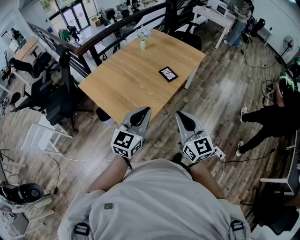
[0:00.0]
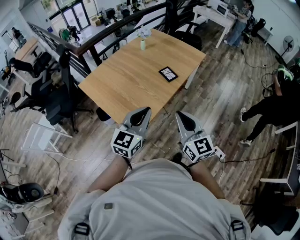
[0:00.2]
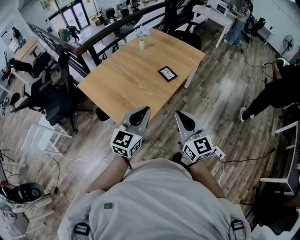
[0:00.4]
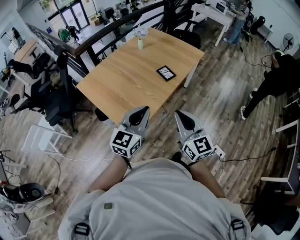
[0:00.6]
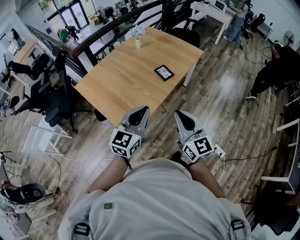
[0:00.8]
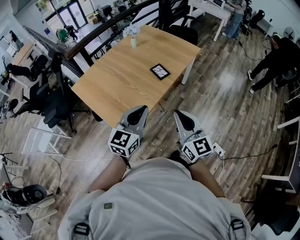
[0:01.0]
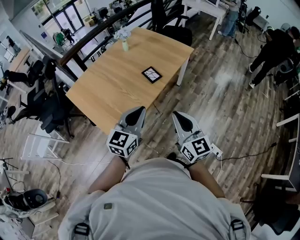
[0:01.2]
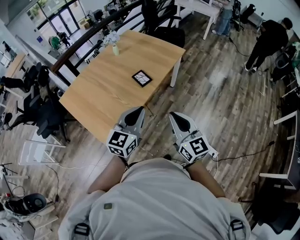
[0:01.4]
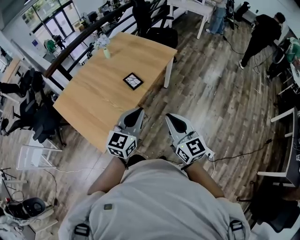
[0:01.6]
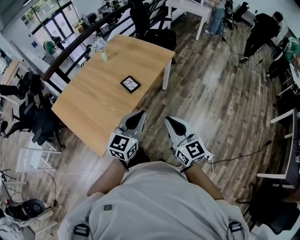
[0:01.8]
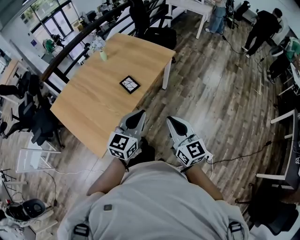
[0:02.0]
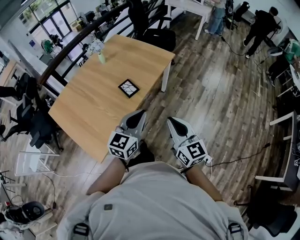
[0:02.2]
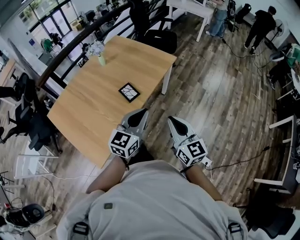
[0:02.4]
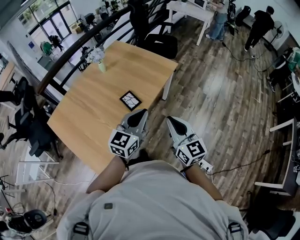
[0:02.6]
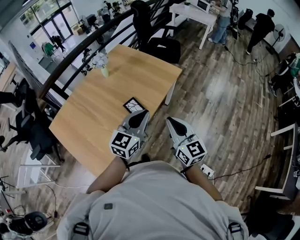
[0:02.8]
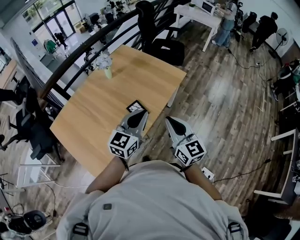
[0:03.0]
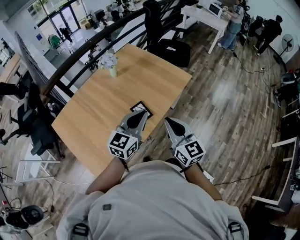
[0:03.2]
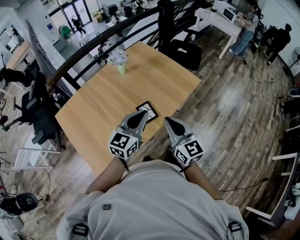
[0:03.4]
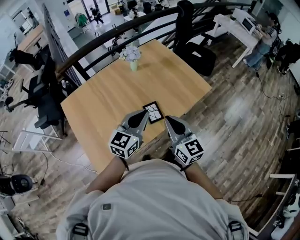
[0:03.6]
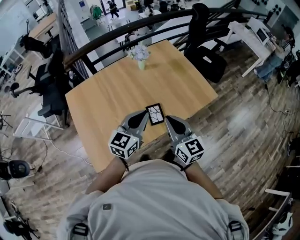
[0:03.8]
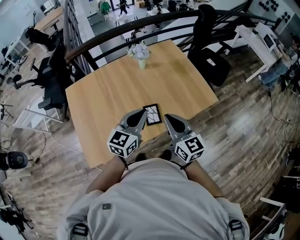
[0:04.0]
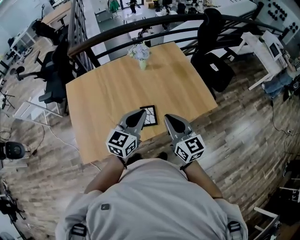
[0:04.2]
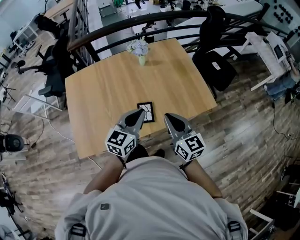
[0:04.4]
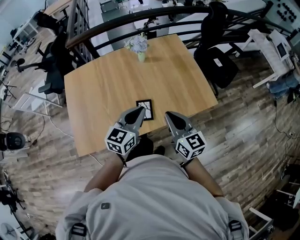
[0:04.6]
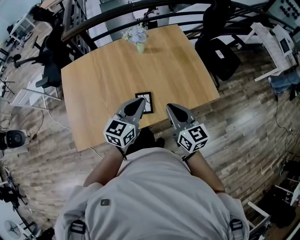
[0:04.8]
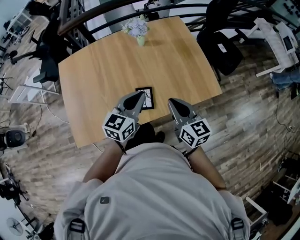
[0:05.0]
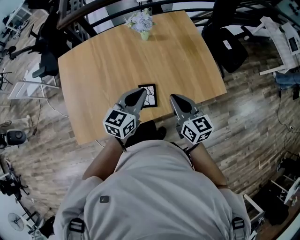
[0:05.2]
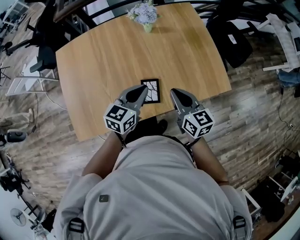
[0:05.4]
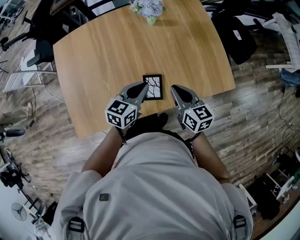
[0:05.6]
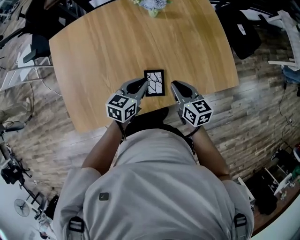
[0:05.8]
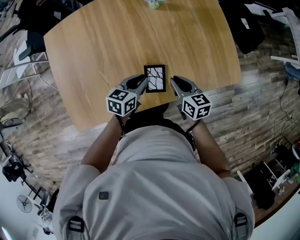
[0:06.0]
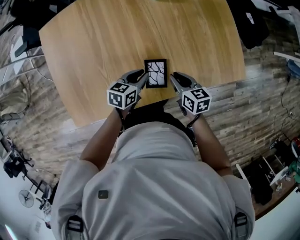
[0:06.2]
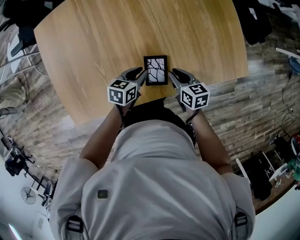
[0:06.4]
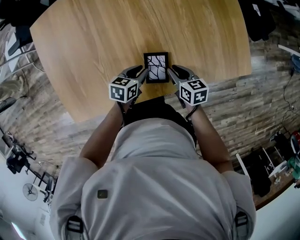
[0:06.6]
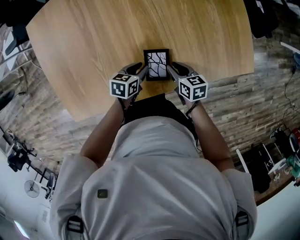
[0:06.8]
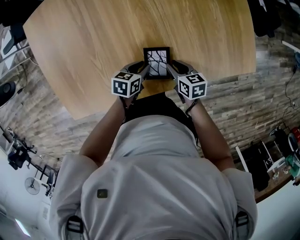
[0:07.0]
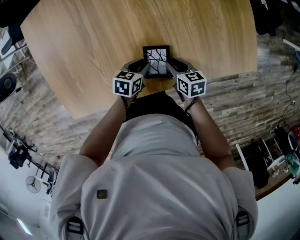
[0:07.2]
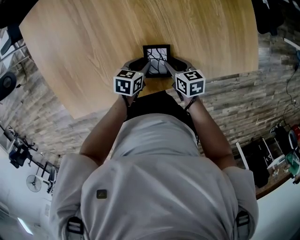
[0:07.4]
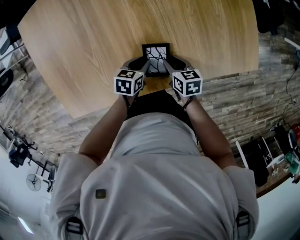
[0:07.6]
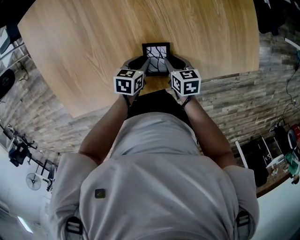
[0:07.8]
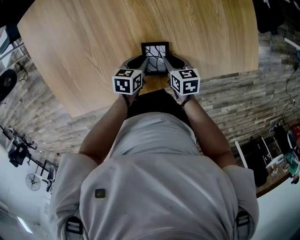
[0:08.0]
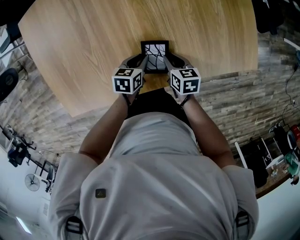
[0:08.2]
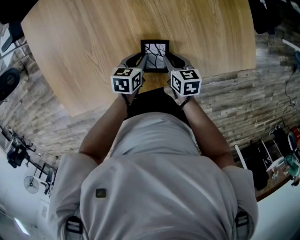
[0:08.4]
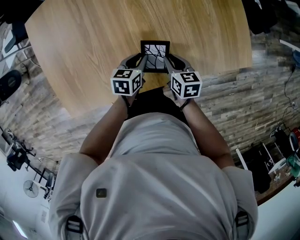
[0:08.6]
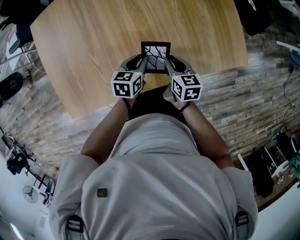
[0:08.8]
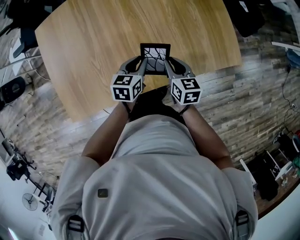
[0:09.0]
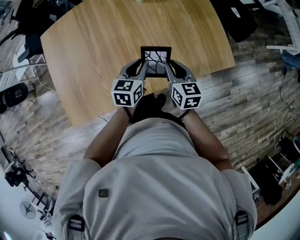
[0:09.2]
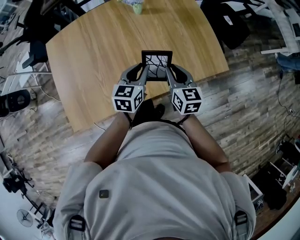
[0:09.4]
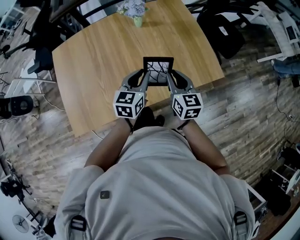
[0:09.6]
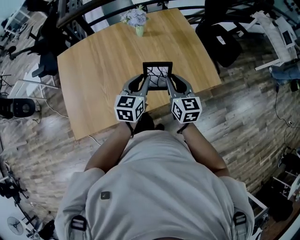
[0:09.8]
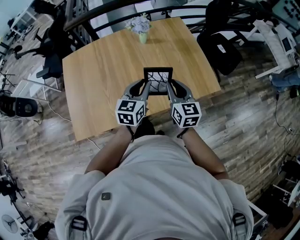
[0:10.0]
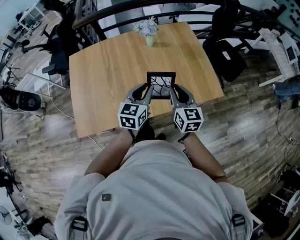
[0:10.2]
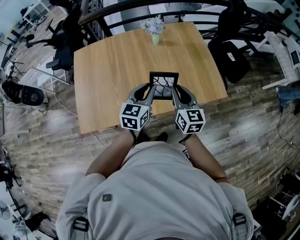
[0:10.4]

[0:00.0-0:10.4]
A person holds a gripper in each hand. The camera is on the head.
0:00.0 to 0:01.4: The two grippers go roughly 20 cm to the right and forward.
0:01.4 to 0:03.0: The grippers both shift forward by about 30 cm.
0:03.0 to 0:04.4: The left gripper moves roughly 15 cm, and swivels about 40 degrees; the right gripper moves roughly 20 cm, and changes its angle by approximately 40 degrees.
0:04.4 to 0:06.0: Both grippers travel together downward and forward, some 30 cm. The right gripper changes its angle by about 30 degrees; the left gripper swivels roughly 30 degrees.
0:06.0 to 0:07.4: Both grippers travel together downward, some 15 cm. The left gripper swivels approximately 20 degrees.
0:07.4 to 0:09.0: The two grippers go approximately 15 cm upward. The left gripper changes its angle by some 20 degrees. The right gripper rotates roughly 20 degrees.
0:09.0 to 0:10.4: Both grippers travel together upward, roughly 20 cm. The left gripper swivels roughly 30 degrees. The right gripper swivels roughly 30 degrees.

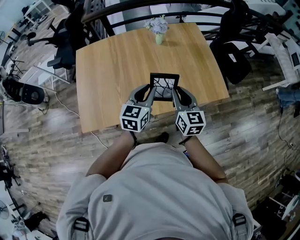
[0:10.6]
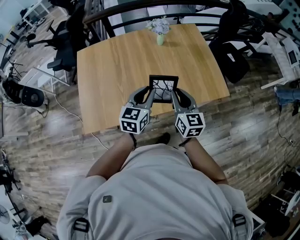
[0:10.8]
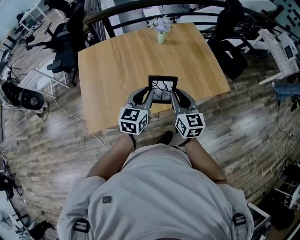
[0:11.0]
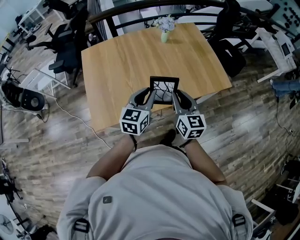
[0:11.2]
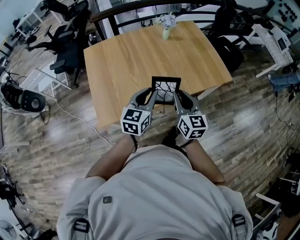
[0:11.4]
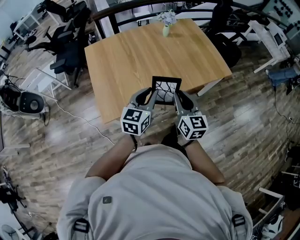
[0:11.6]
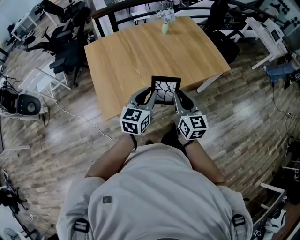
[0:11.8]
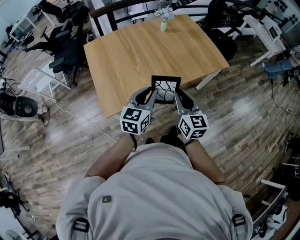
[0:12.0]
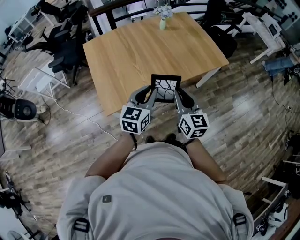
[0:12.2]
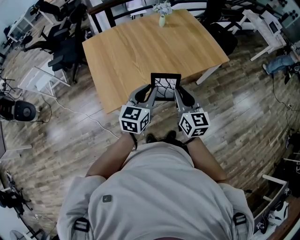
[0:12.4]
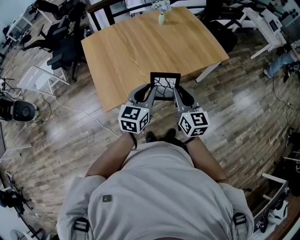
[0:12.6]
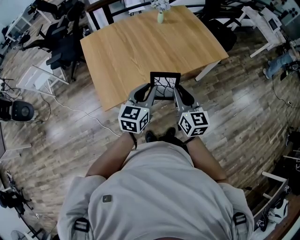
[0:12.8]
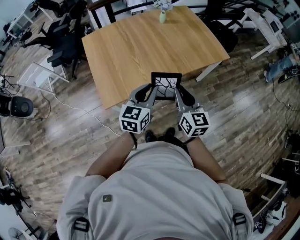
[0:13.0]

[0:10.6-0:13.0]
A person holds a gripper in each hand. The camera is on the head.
0:10.6 to 0:11.8: The two grippers go about 30 cm backward and to the left.
0:11.8 to 0:13.0: The grippers move only a little.

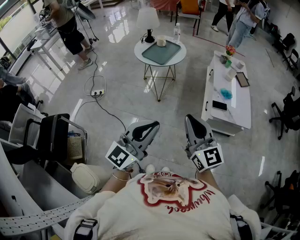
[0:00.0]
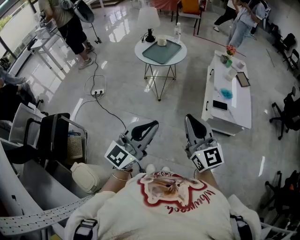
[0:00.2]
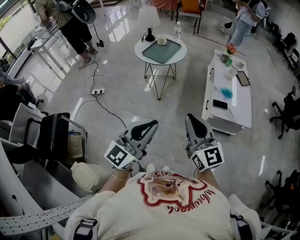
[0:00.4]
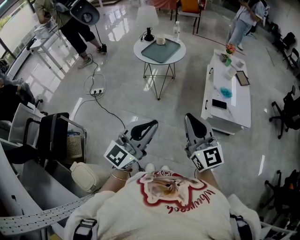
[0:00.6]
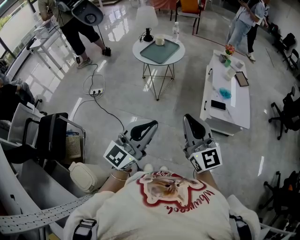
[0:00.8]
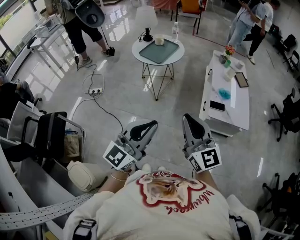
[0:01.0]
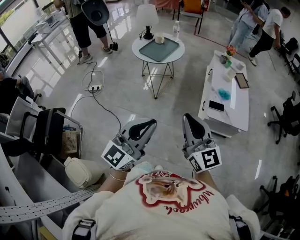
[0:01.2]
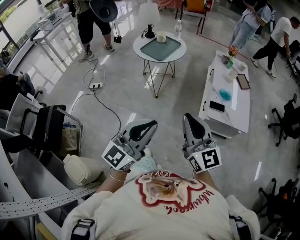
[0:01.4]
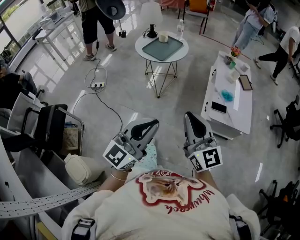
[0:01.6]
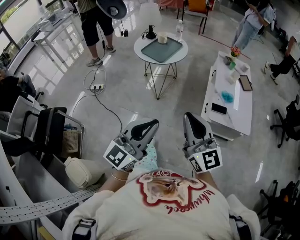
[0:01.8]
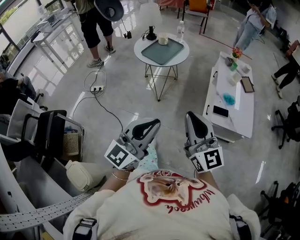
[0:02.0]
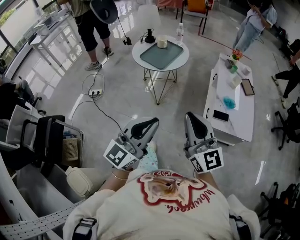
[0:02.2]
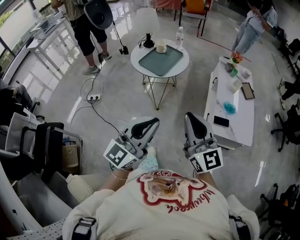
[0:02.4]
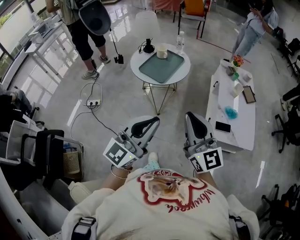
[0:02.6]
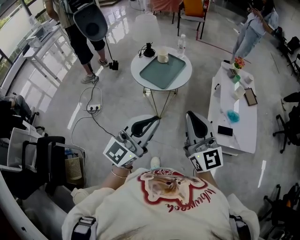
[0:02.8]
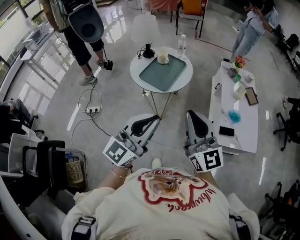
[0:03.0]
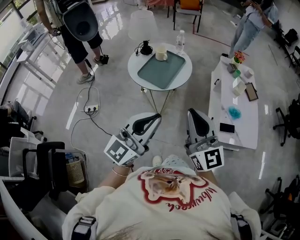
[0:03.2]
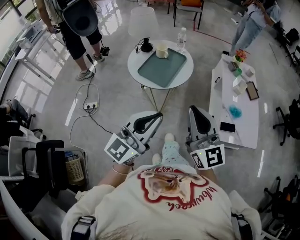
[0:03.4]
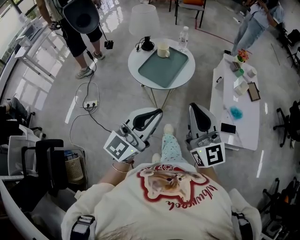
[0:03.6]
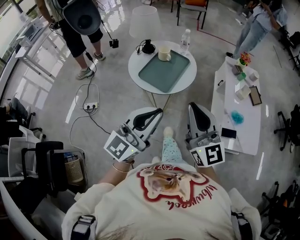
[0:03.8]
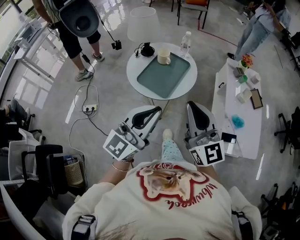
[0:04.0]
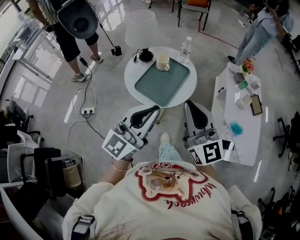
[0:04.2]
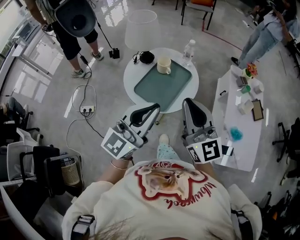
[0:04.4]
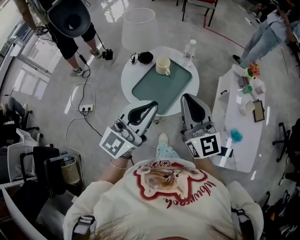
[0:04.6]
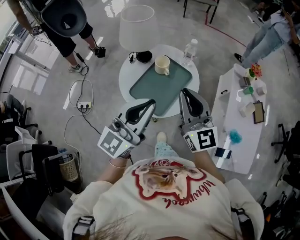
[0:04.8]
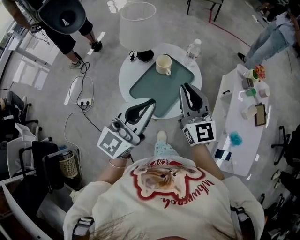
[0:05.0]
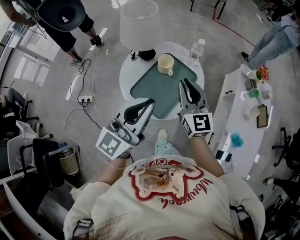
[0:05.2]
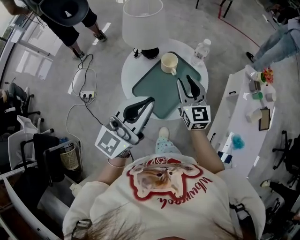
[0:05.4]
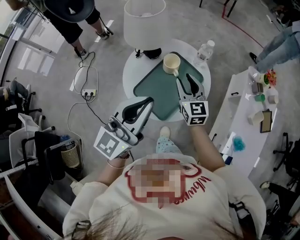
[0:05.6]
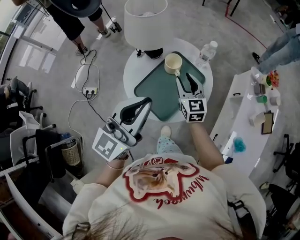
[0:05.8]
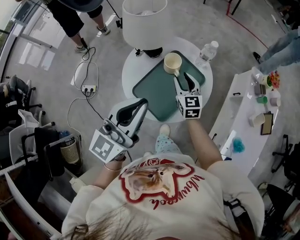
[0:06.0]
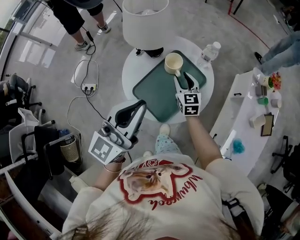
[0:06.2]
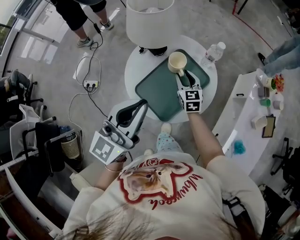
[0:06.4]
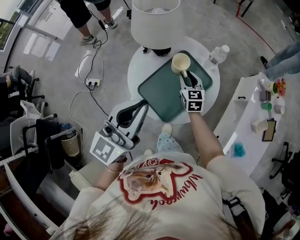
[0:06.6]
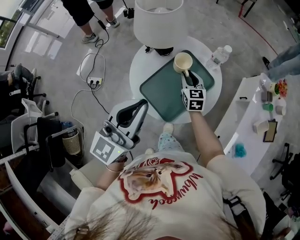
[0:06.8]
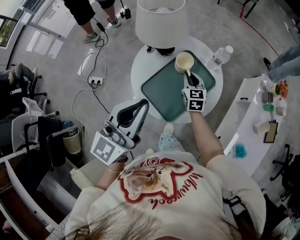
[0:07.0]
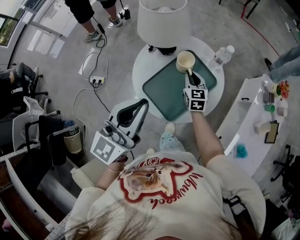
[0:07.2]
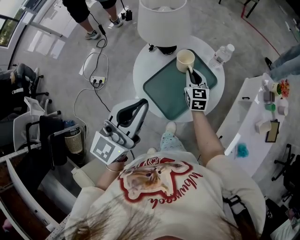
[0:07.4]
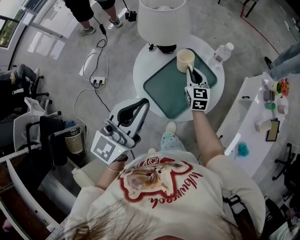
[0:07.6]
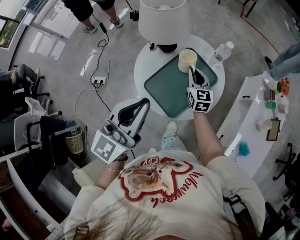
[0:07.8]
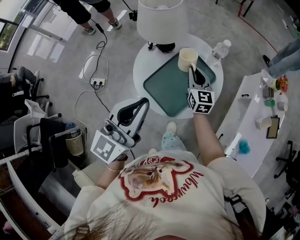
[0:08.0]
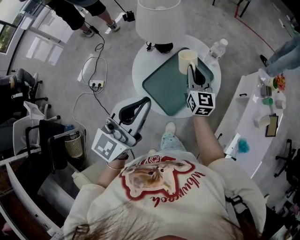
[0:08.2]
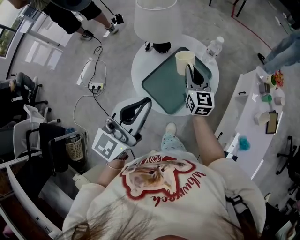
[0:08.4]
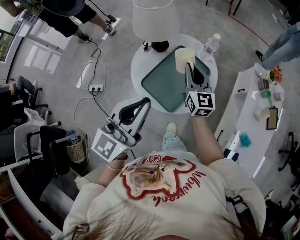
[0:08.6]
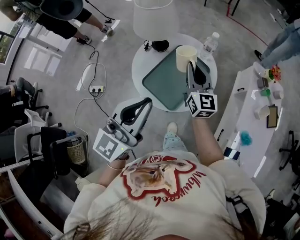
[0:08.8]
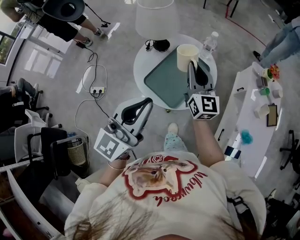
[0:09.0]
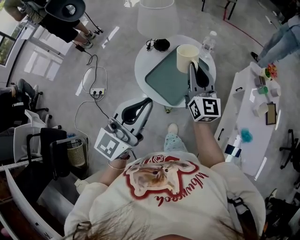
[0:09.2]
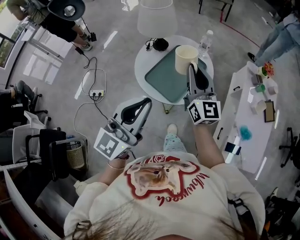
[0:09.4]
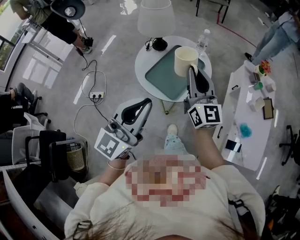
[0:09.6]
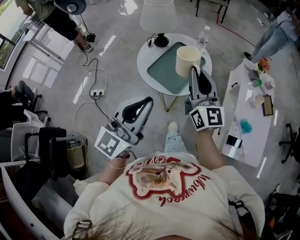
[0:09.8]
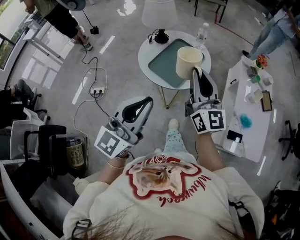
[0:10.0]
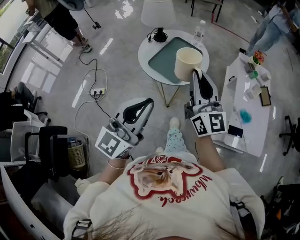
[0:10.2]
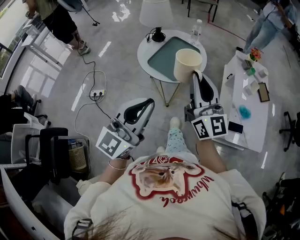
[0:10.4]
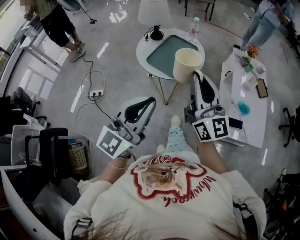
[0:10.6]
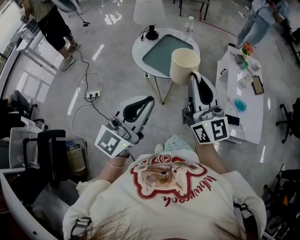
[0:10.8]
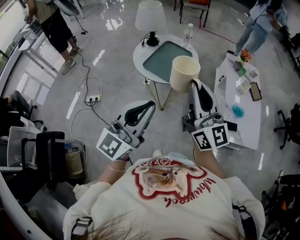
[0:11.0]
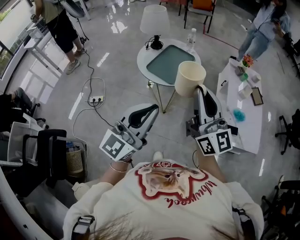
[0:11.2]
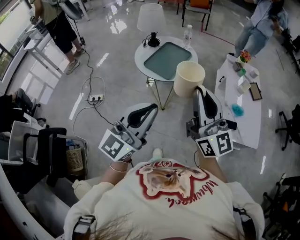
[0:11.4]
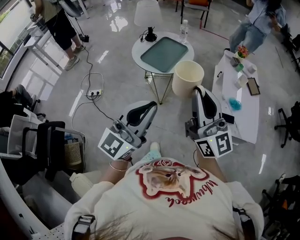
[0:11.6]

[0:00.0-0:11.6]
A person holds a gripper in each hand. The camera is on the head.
0:00.0 to 0:01.4: The grippers move only a little.
0:01.4 to 0:02.8: The grippers both shift forward by about 25 cm.
0:02.8 to 0:04.4: The two grippers go roughly 25 cm forward.
0:04.4 to 0:05.8: The left gripper travels forward by some 15 cm. Meanwhile the right gripper moves forward and downward, about 35 cm, changes its angle by approximately 30 degrees, and opens its fingers.
0:05.8 to 0:07.2: The right gripper shifts roughly 10 cm downward.
0:07.2 to 0:08.8: The right gripper heads upward and backward, covering about 20 cm, and rotates some 30 degrees. The left gripper travels backward by some 5 cm.
0:08.8 to 0:10.2: The left gripper is displaced backward by about 20 cm, while the right gripper moves backward and upward, roughly 30 cm.
0:10.2 to 0:11.6: Both grippers move backward and to the right, roughly 20 cm.
